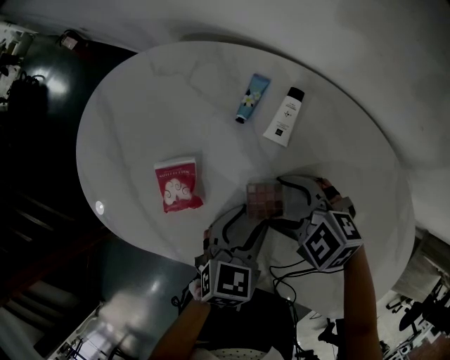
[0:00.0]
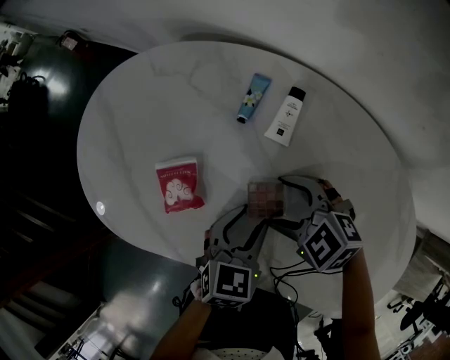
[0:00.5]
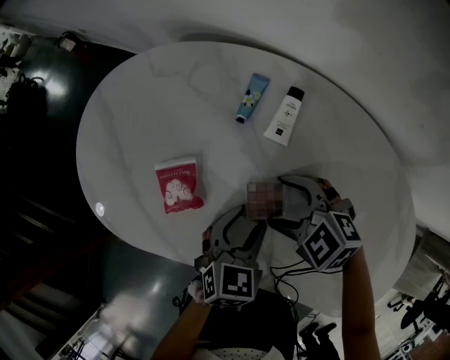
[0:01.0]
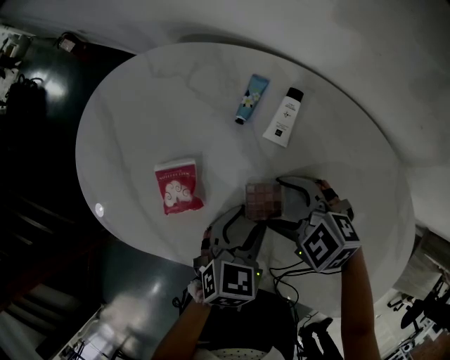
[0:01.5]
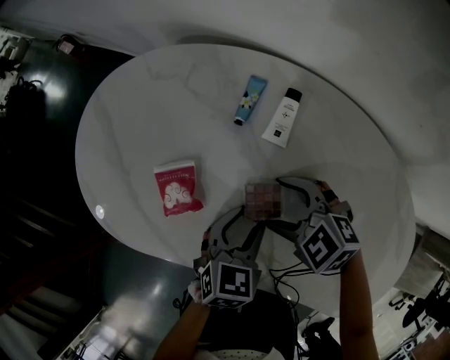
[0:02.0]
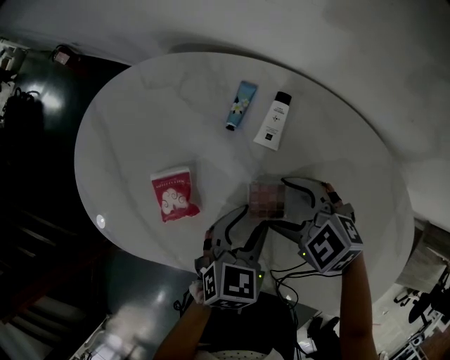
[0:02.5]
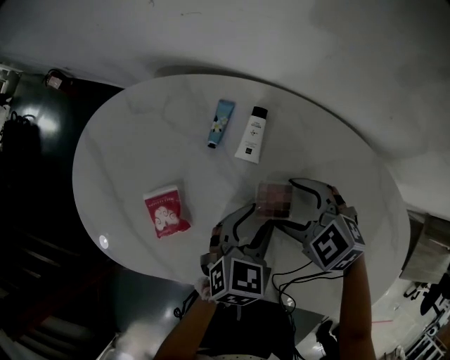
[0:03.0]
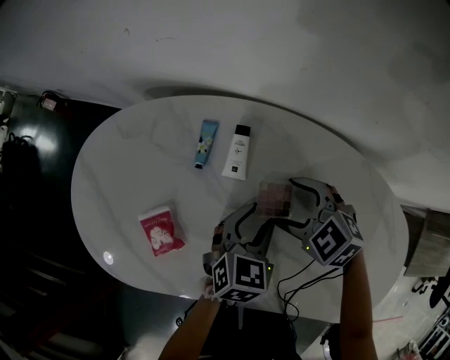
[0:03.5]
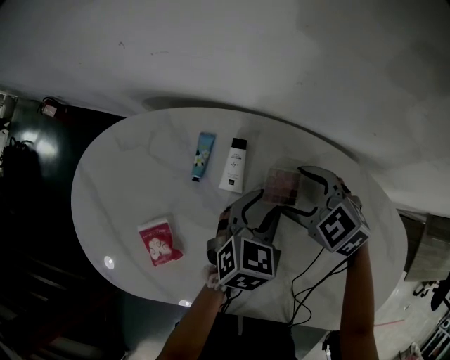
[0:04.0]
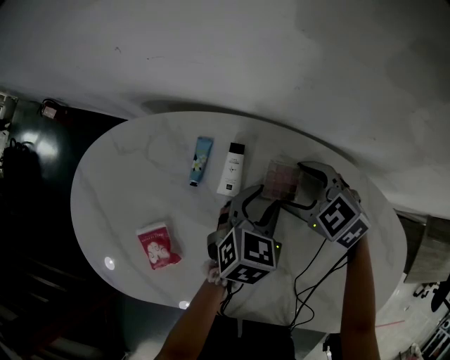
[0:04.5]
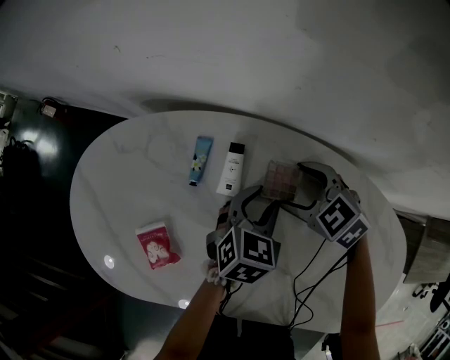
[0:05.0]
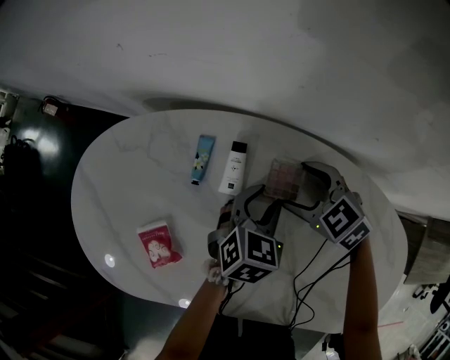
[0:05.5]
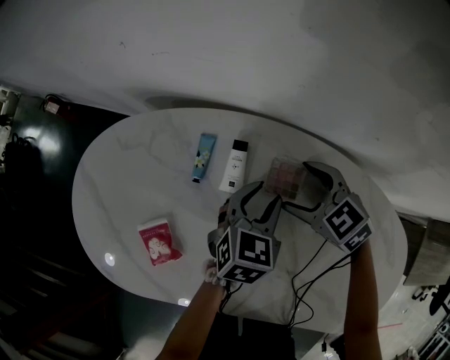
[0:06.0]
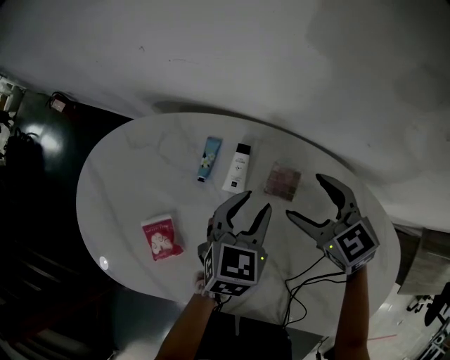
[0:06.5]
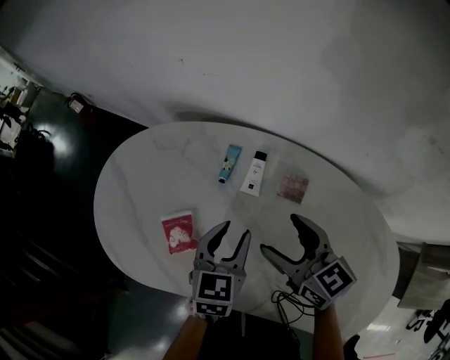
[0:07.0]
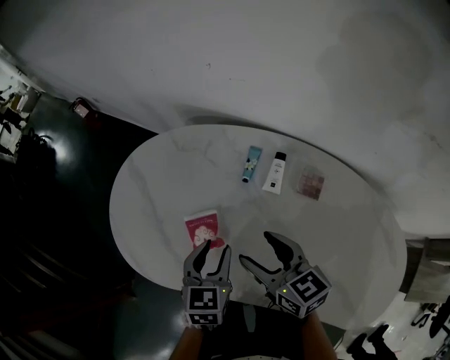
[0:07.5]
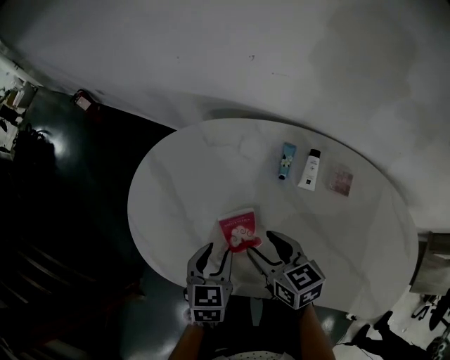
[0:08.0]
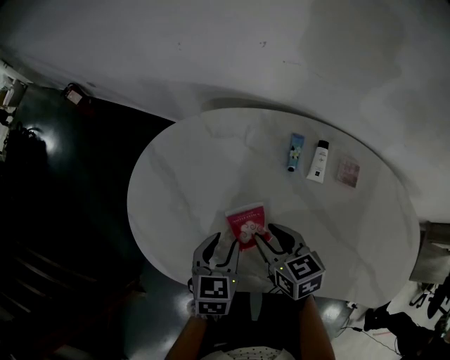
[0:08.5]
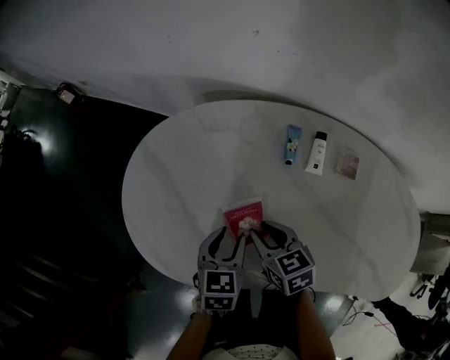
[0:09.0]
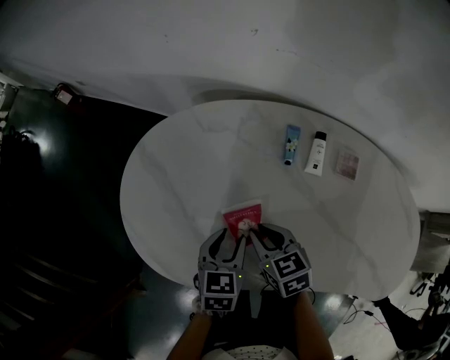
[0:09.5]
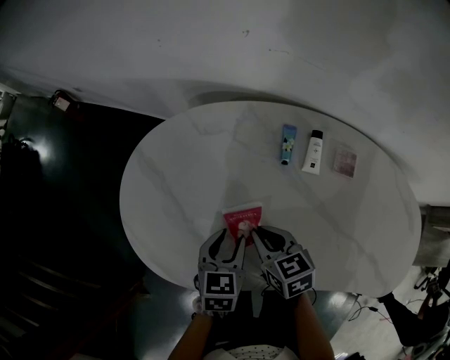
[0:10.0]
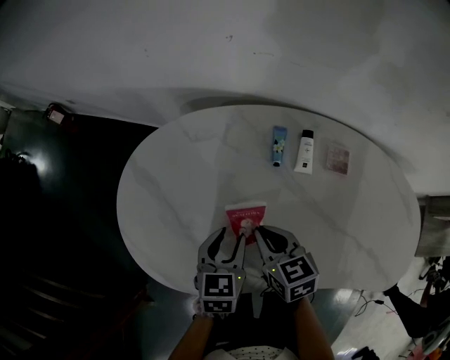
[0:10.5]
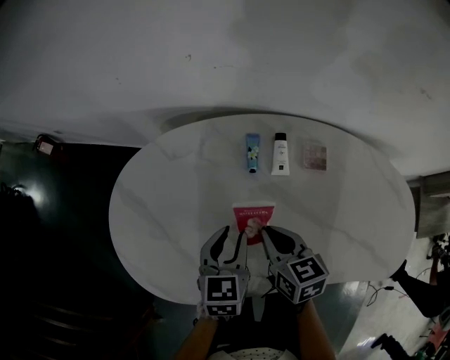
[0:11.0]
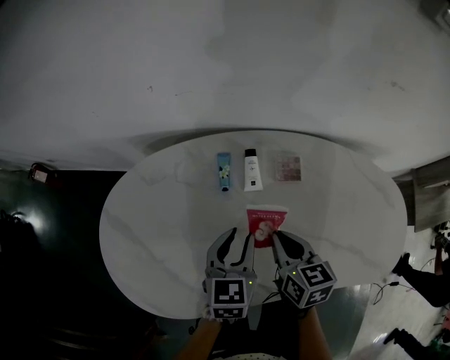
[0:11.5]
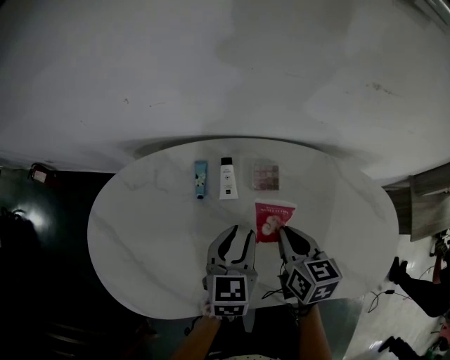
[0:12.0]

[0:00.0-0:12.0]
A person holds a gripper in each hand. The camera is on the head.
0:00.0 to 0:02.0: The grippers stay close to where they were, moving slightly.
0:02.0 to 0:04.0: Both grippers travel together to the right and forward, roughly 15 cm. The right gripper changes its angle by about 20 degrees.
0:04.0 to 0:06.0: The grippers make only small movements.
0:06.0 to 0:08.0: Both grippers travel together to the left, some 35 cm. The right gripper rotates approximately 30 degrees, and closes. The left gripper swivels approximately 30 degrees.
0:08.0 to 0:10.0: The right gripper shifts by some 5 cm, and closes its fingers.
0:10.0 to 0:12.0: The grippers both shift to the right by approximately 25 cm. The right gripper changes its angle by some 40 degrees.

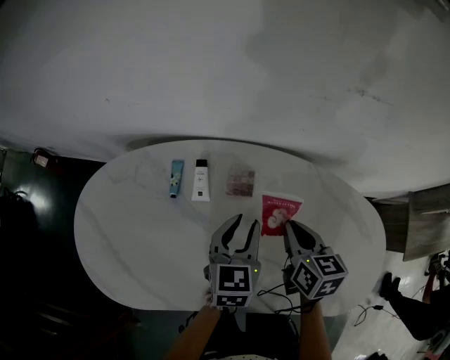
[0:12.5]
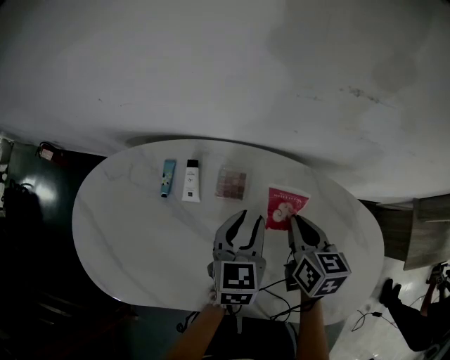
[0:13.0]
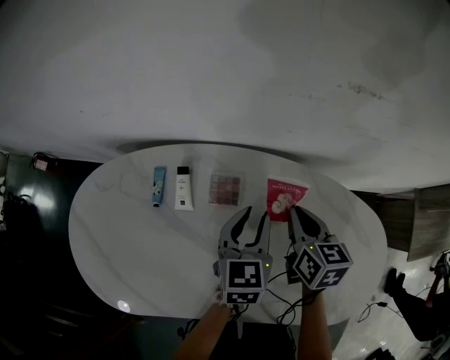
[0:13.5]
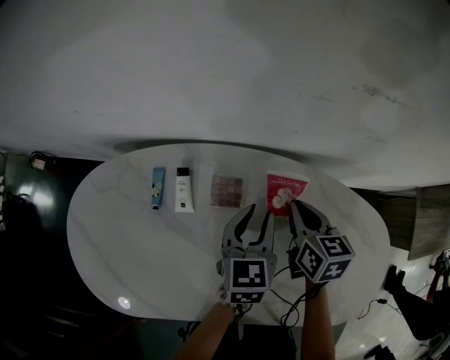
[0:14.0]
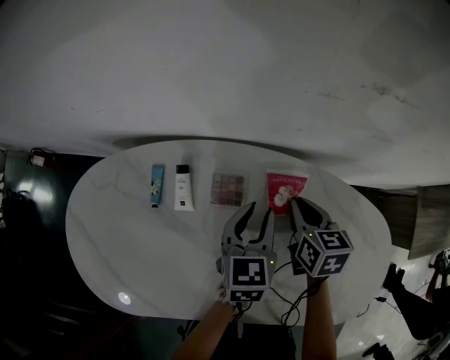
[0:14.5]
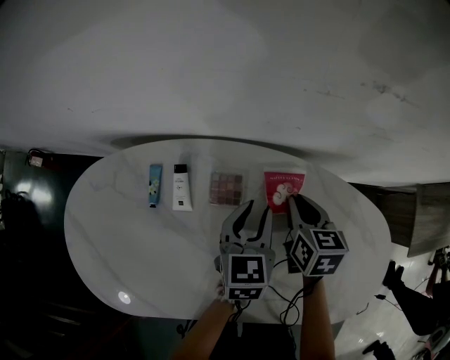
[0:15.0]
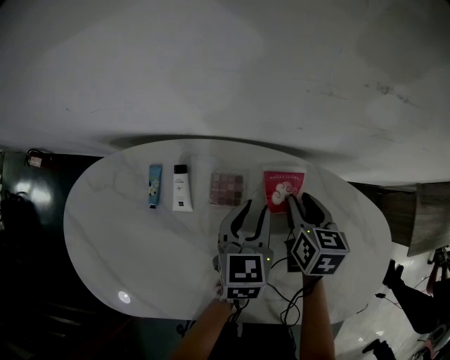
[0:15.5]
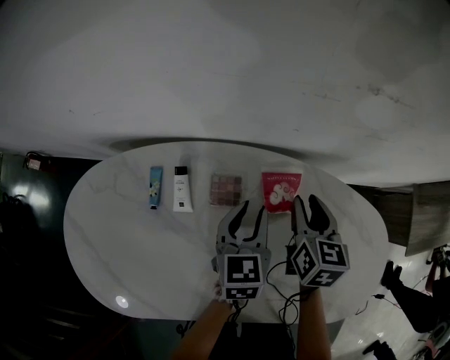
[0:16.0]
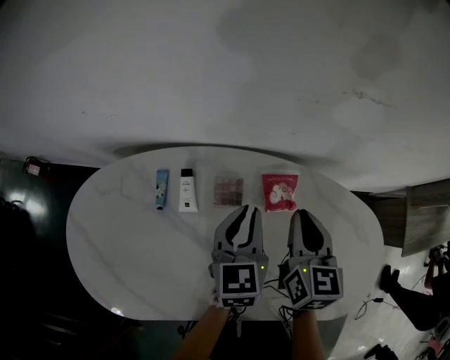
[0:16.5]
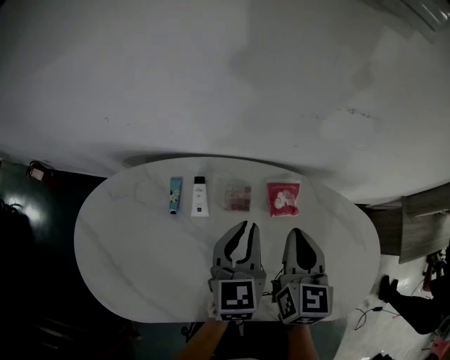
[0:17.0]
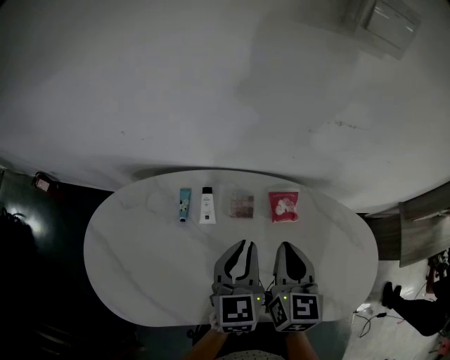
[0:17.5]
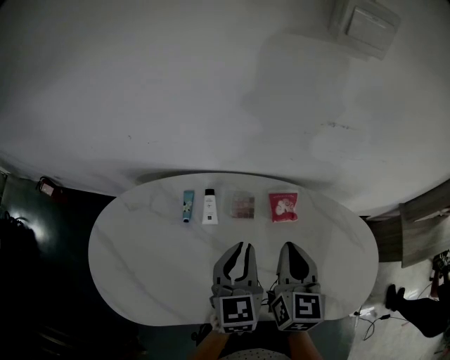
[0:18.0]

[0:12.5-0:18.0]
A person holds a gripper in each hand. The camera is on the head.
0:12.5 to 0:14.5: The right gripper heads forward and downward, covering roughly 10 cm. Meanwhile the left gripper moves to the right and forward, roughly 10 cm.
0:14.5 to 0:16.0: The grippers stay close to where they were, moving slightly.
0:16.0 to 0:18.0: The two grippers go approximately 20 cm upward, backward and to the left. The right gripper closes.

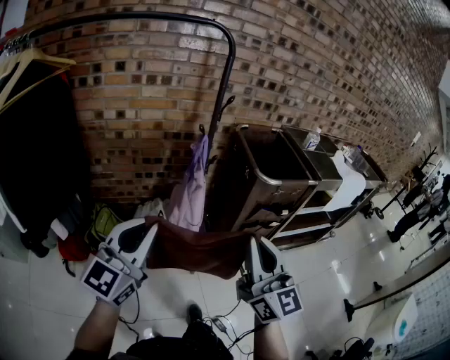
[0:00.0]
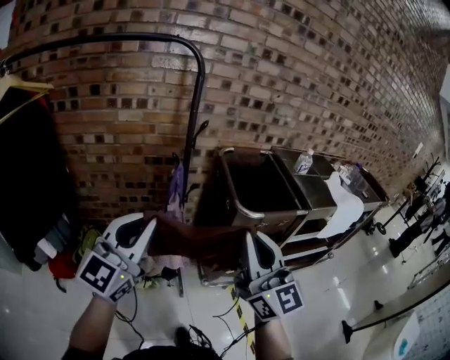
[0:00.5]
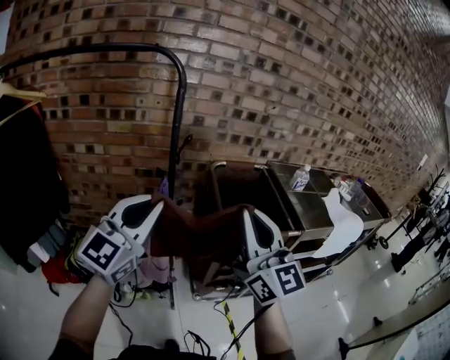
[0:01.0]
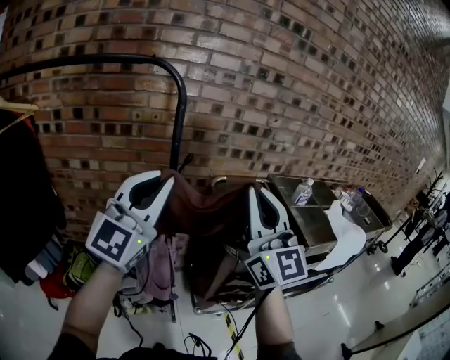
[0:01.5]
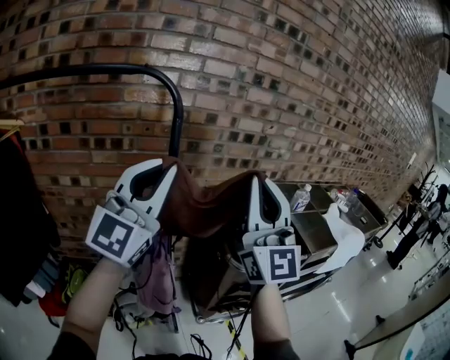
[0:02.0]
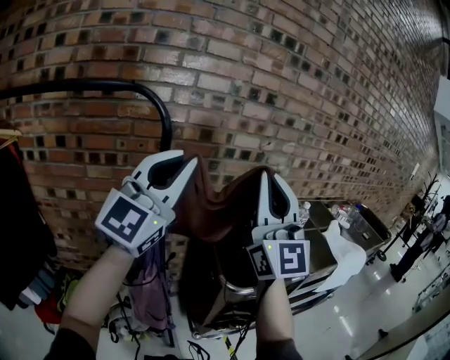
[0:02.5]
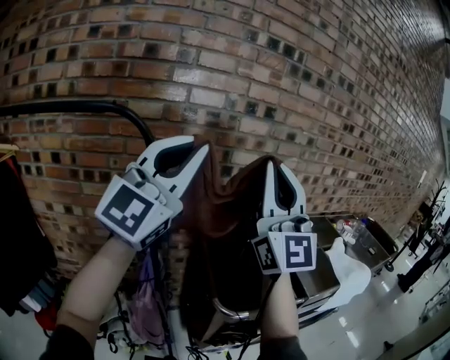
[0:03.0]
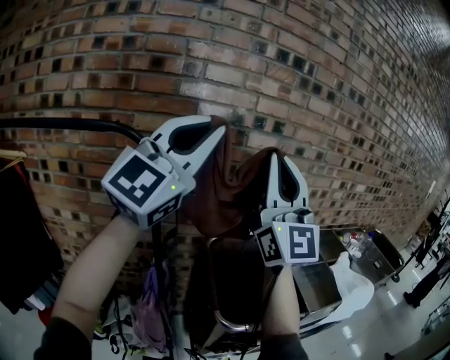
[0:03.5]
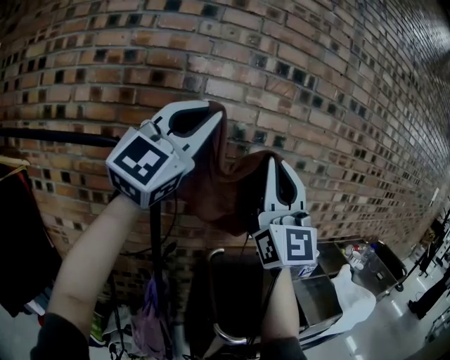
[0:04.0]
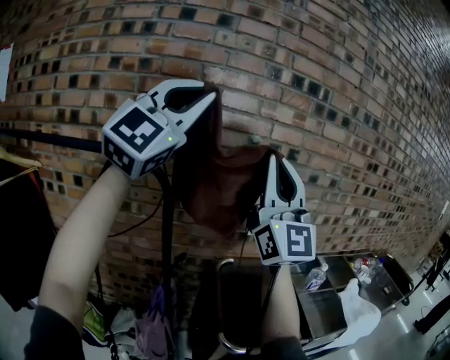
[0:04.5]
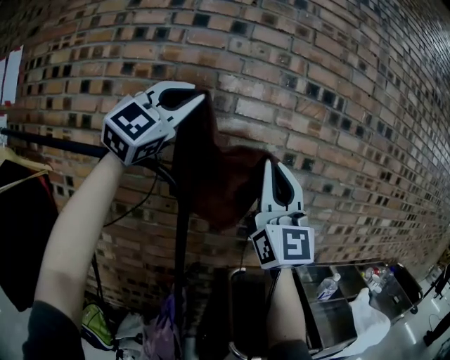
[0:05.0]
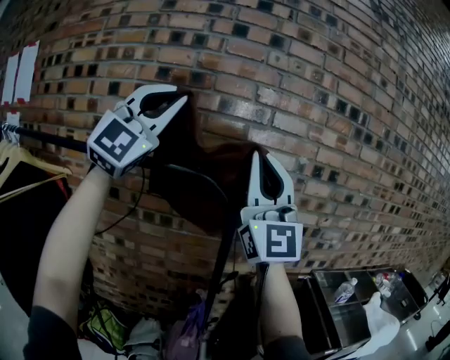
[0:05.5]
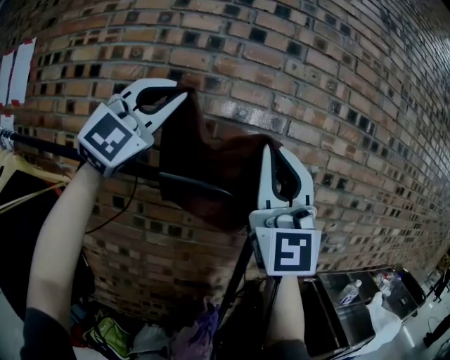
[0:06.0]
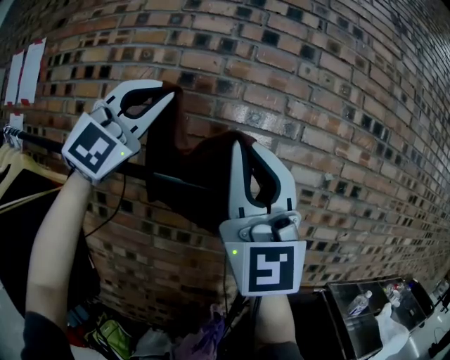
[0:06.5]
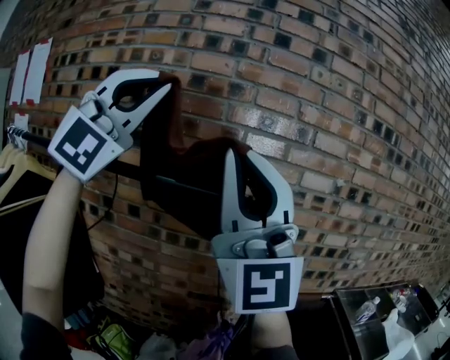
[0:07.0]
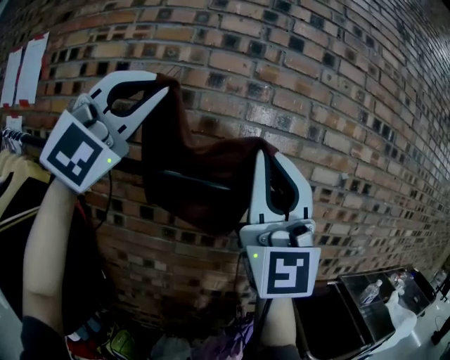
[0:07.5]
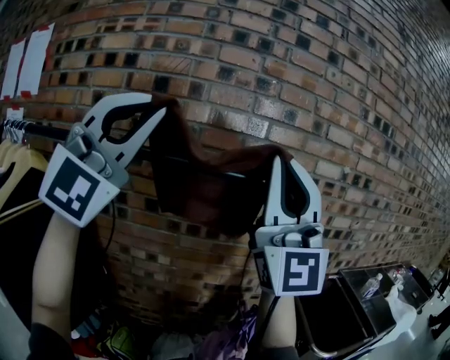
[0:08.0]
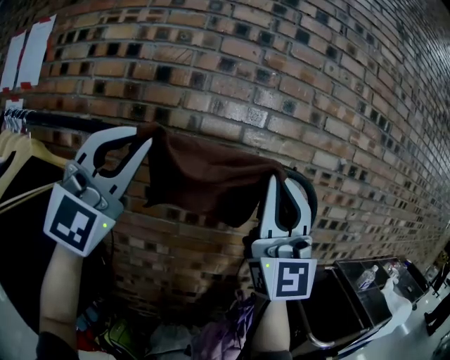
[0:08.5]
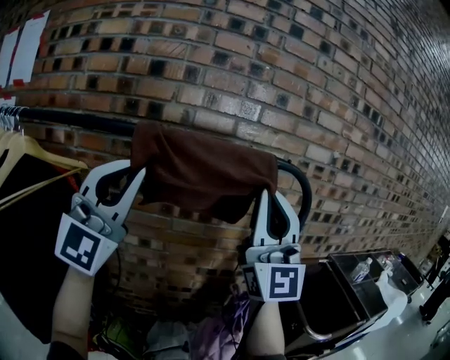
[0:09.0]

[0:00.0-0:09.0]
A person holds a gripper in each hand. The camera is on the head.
0:00.0 to 0:02.0: Both grippers move forward and upward, approximately 40 cm. The right gripper changes its angle by some 30 degrees; the left gripper rotates some 30 degrees.
0:02.0 to 0:04.5: The grippers both shift upward and forward by about 30 cm. The left gripper swivels roughly 30 degrees.
0:04.5 to 0:07.0: The two grippers go about 35 cm to the left. The left gripper turns by approximately 30 degrees; the right gripper turns by about 20 degrees.
0:07.0 to 0:09.0: The right gripper shifts some 15 cm downward. The left gripper shifts roughly 25 cm downward and to the left, and swivels approximately 20 degrees.
